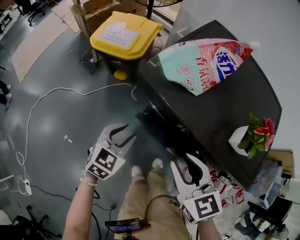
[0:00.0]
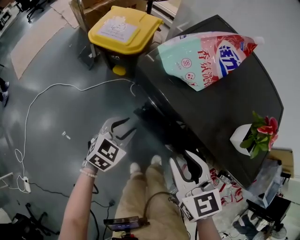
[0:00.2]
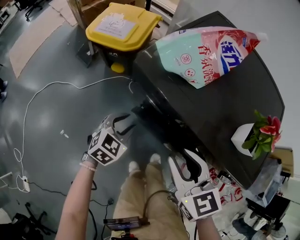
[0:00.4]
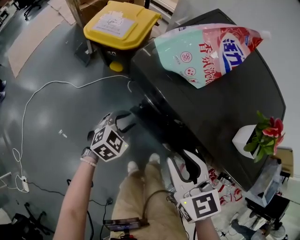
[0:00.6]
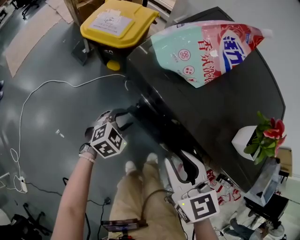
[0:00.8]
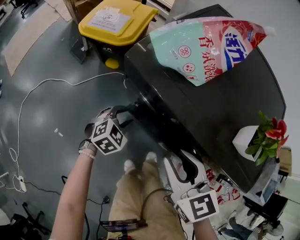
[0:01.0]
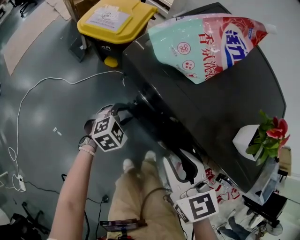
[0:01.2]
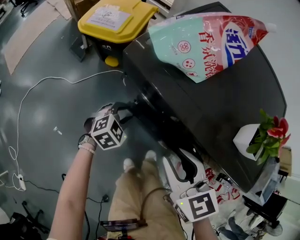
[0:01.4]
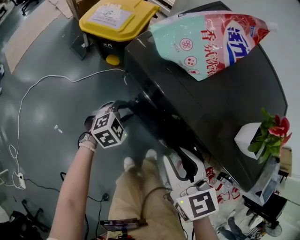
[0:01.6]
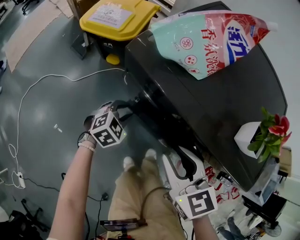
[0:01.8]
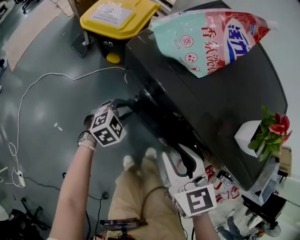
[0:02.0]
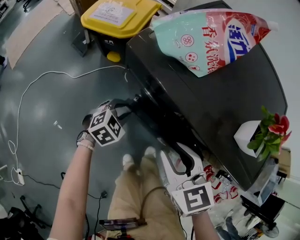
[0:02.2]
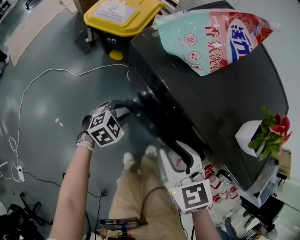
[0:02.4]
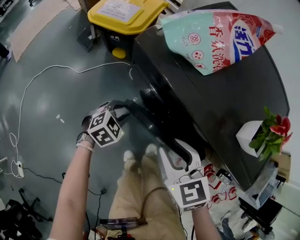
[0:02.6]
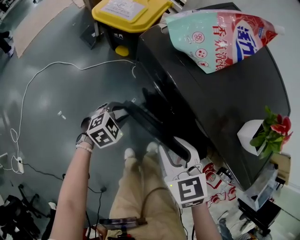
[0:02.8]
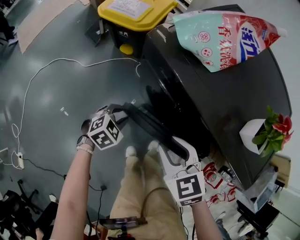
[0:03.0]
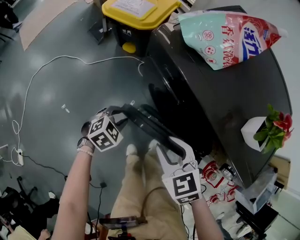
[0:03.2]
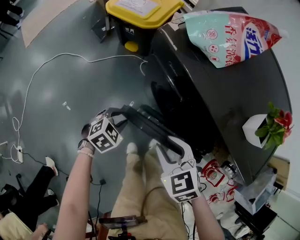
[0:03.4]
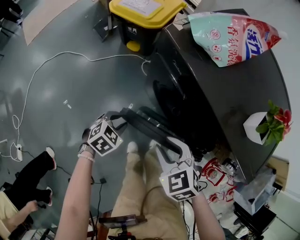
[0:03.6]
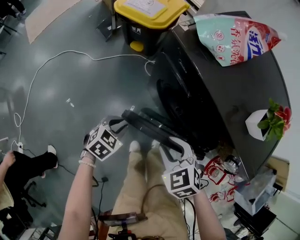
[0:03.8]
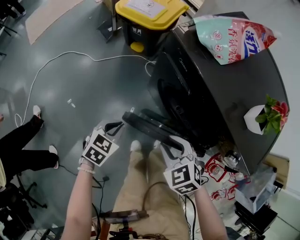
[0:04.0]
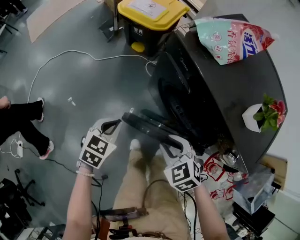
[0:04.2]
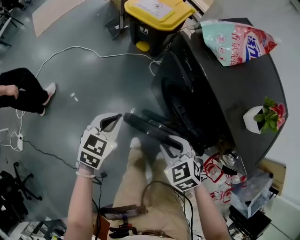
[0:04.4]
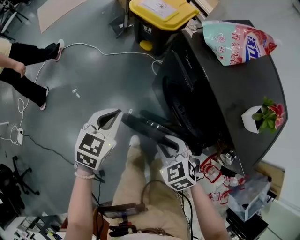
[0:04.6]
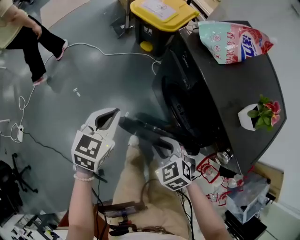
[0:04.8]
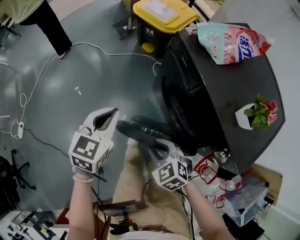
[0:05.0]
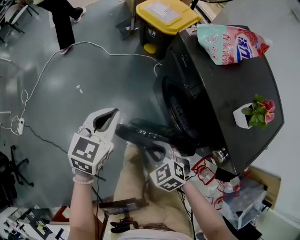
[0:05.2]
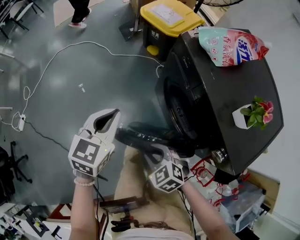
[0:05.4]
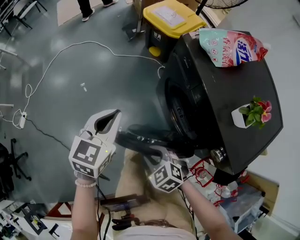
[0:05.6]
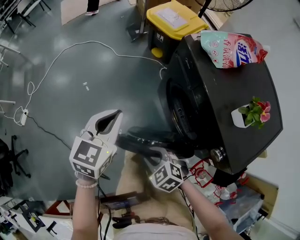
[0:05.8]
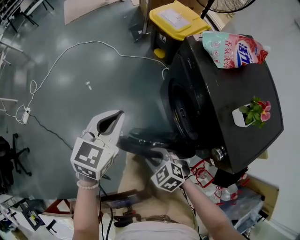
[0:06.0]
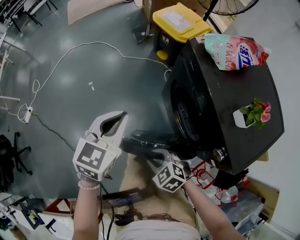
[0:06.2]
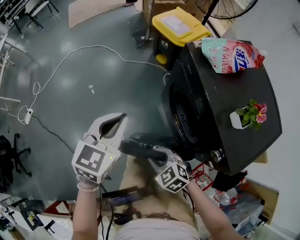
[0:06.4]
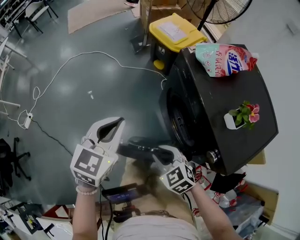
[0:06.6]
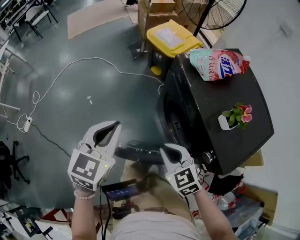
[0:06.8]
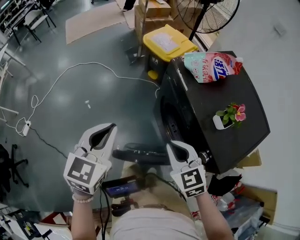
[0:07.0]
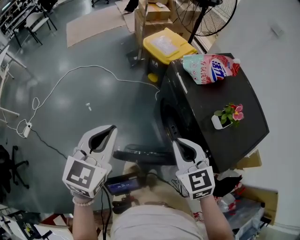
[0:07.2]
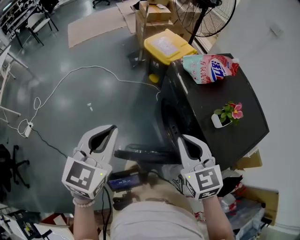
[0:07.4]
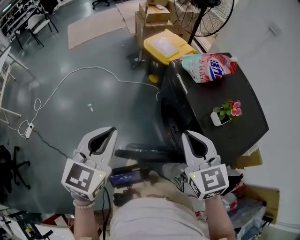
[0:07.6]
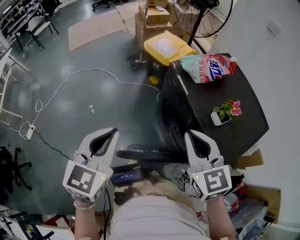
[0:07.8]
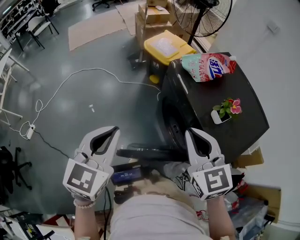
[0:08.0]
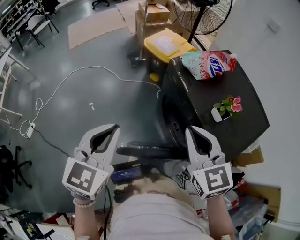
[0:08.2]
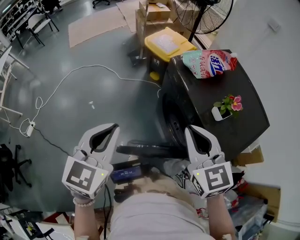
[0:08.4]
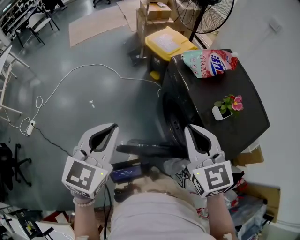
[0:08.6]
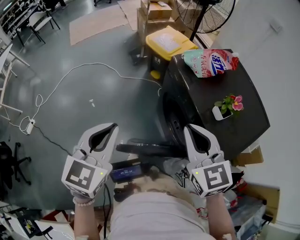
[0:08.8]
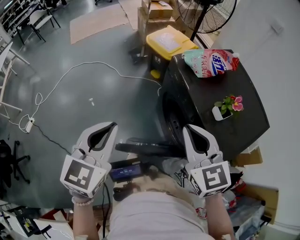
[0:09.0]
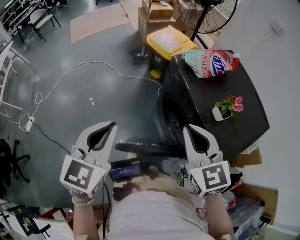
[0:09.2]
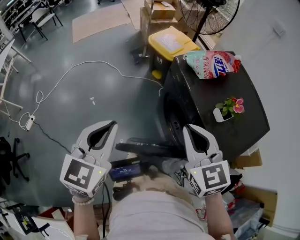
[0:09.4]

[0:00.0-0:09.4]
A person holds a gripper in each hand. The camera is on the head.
0:00.0 to 0:01.6: The right gripper moves downward, some 5 cm. The left gripper is displaced downward by roughly 15 cm, and rotates roughly 30 degrees.
0:01.6 to 0:03.2: The right gripper shifts roughly 5 cm downward, and turns by about 20 degrees. Meanwhile the left gripper is displaced backward by about 10 cm.
0:03.2 to 0:04.8: The left gripper moves upward, approximately 20 cm, changes its angle by approximately 50 degrees, and closes its fingers. Meanwhile the right gripper shifts by some 10 cm, and turns by some 20 degrees.
0:04.8 to 0:06.2: The left gripper goes about 15 cm upward and backward; the right gripper travels backward and to the left by roughly 10 cm, and changes its angle by about 20 degrees.
0:06.2 to 0:07.8: The left gripper is displaced upward and backward by roughly 15 cm. The right gripper travels upward and to the right by some 35 cm, angles its fingers upward, by roughly 30 degrees, and closes its fingers.
0:07.8 to 0:09.4: Both grippers stay put.

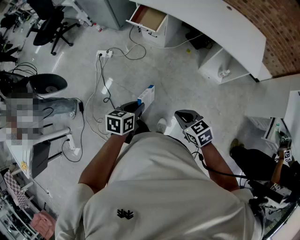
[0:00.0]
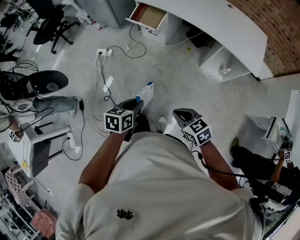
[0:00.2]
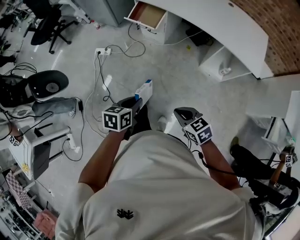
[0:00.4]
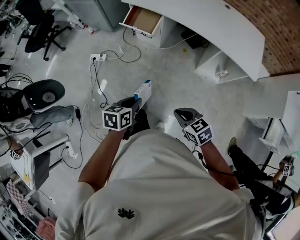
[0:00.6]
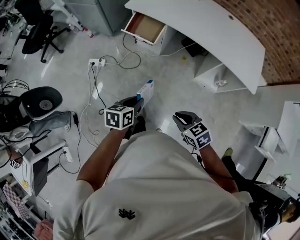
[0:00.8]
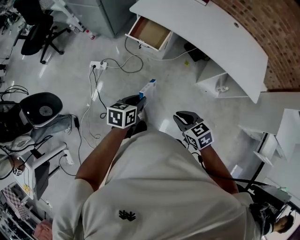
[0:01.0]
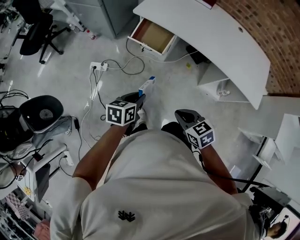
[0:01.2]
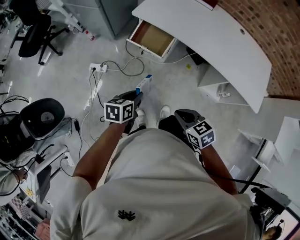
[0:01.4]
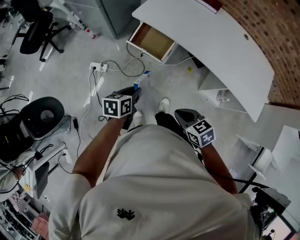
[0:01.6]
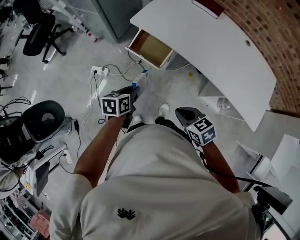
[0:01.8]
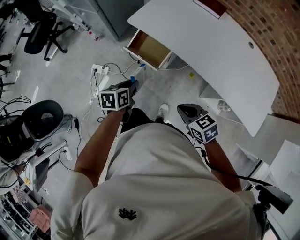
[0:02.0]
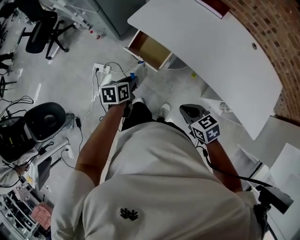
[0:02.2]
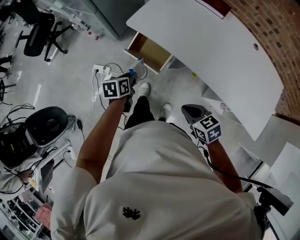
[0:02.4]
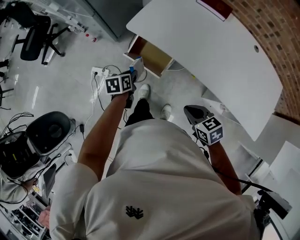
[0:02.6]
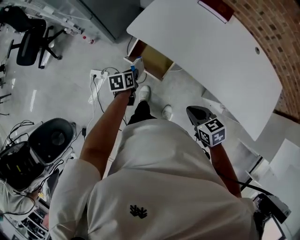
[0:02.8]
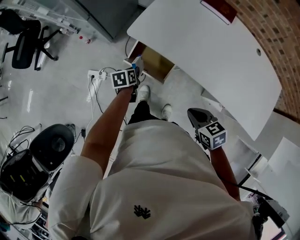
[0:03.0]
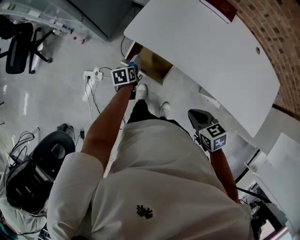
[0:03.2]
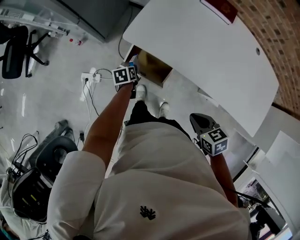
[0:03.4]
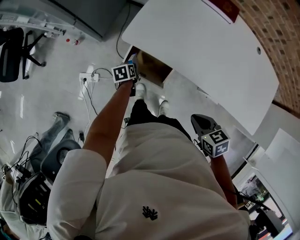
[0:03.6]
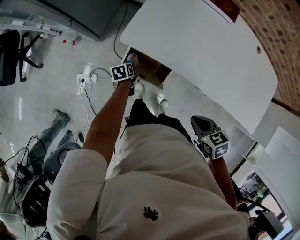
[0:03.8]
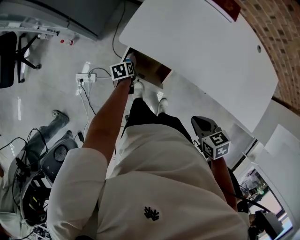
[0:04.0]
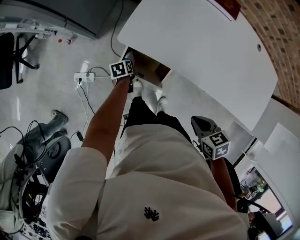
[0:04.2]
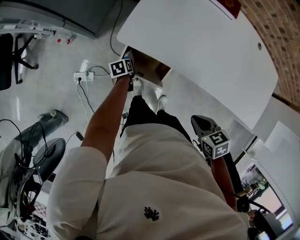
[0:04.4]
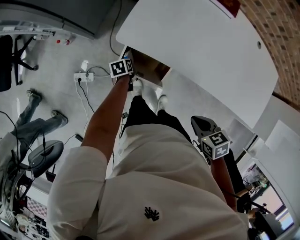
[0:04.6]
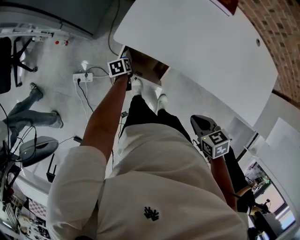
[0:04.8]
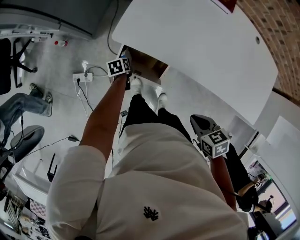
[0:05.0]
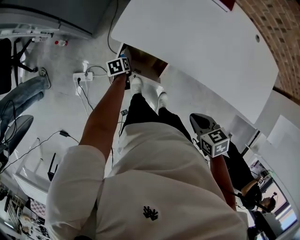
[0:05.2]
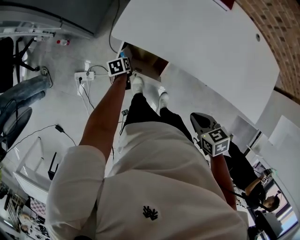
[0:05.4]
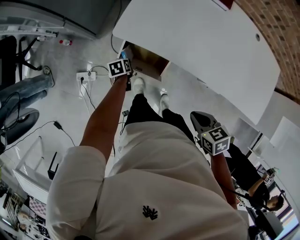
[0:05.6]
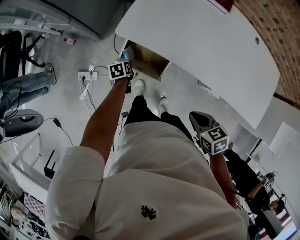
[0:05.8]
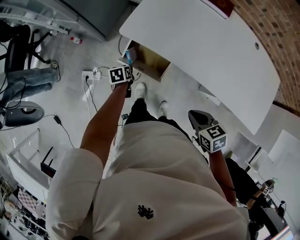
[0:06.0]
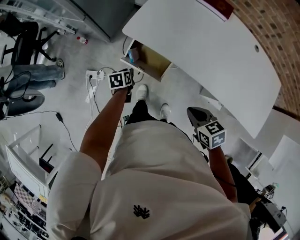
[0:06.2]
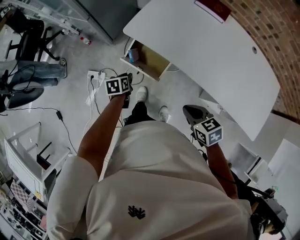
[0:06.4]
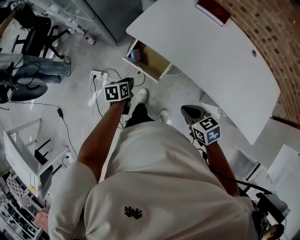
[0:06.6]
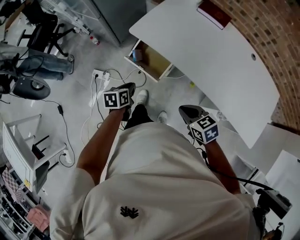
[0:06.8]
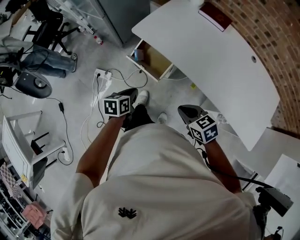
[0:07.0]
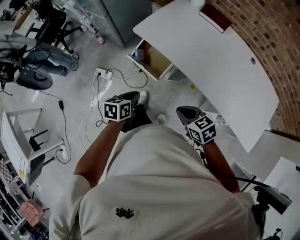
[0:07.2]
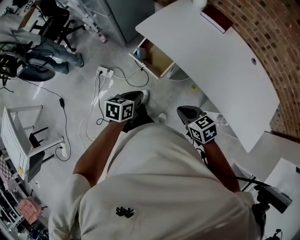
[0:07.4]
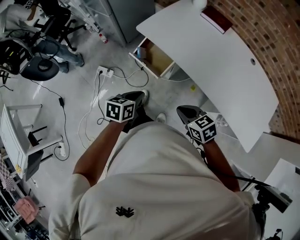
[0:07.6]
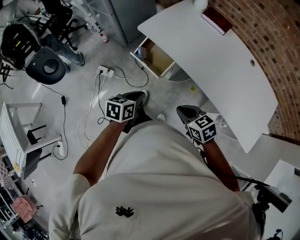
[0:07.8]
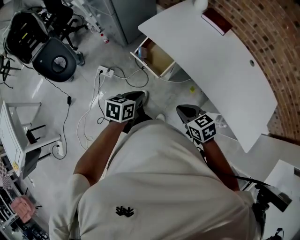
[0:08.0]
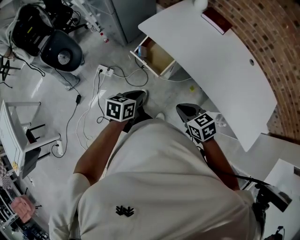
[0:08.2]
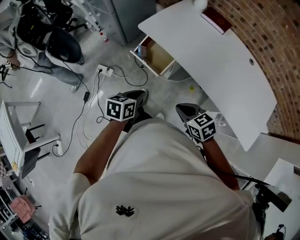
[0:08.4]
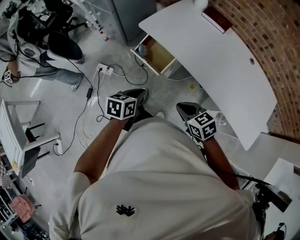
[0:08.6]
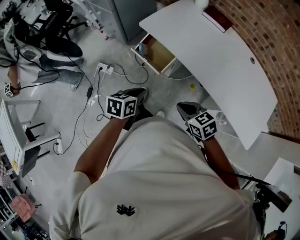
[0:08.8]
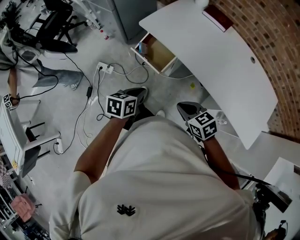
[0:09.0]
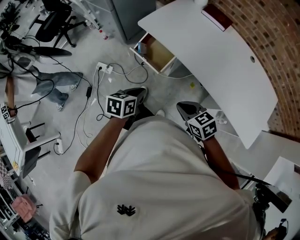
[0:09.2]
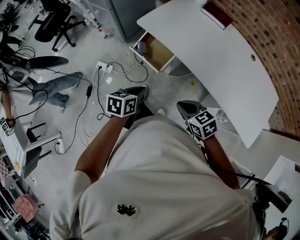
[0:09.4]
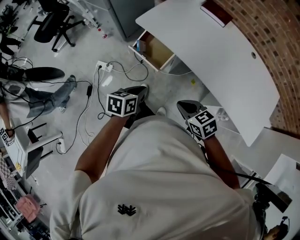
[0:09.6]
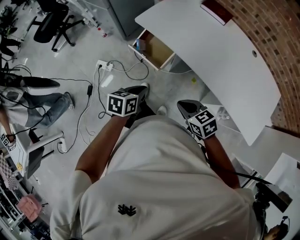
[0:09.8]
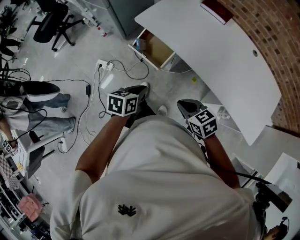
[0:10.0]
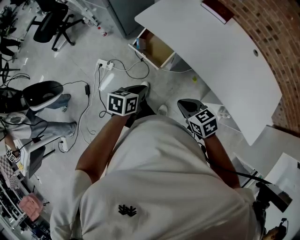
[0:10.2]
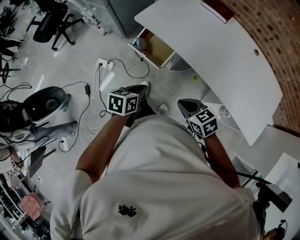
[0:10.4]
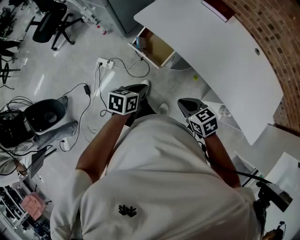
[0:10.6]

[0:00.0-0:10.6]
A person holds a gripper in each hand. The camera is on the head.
0:00.0 to 0:01.6: Both grippers are carried forward, about 50 cm.
0:01.6 to 0:03.0: Both grippers move forward, some 35 cm.
0:03.0 to 0:04.6: The left gripper goes about 20 cm downward and forward. The right gripper heads forward, covering about 10 cm.
0:04.6 to 0:06.0: The right gripper is displaced backward by roughly 5 cm. The left gripper shifts some 15 cm backward and upward.
0:06.0 to 0:07.6: The left gripper heads backward and upward, covering roughly 40 cm, and closes up. Meanwhile the right gripper goes some 15 cm backward, and turns by roughly 30 degrees.
0:07.6 to 0:10.6: There are only small adjustments of the grippers.

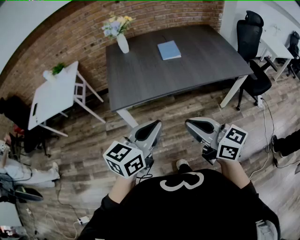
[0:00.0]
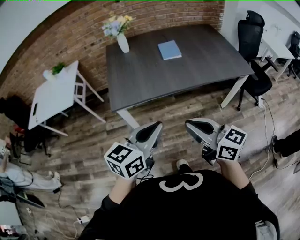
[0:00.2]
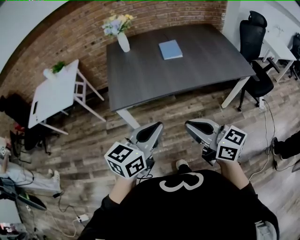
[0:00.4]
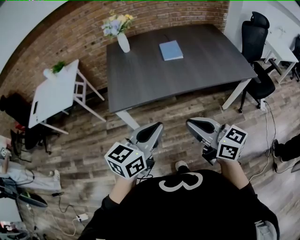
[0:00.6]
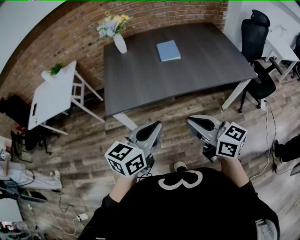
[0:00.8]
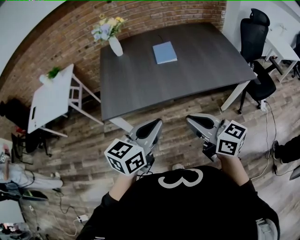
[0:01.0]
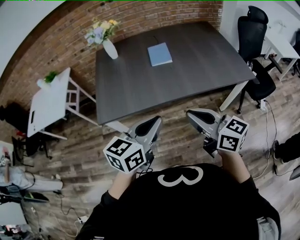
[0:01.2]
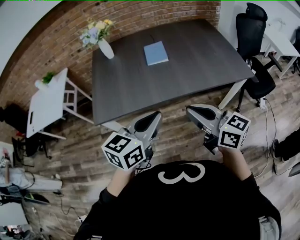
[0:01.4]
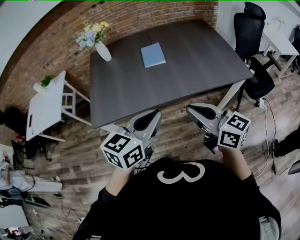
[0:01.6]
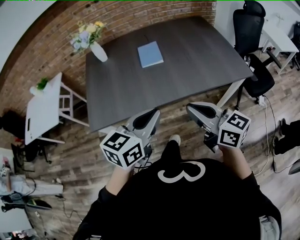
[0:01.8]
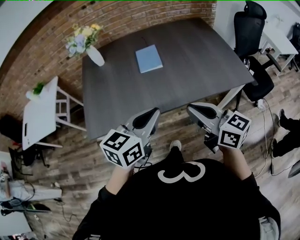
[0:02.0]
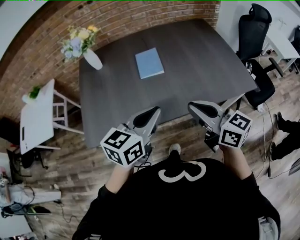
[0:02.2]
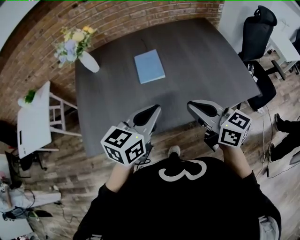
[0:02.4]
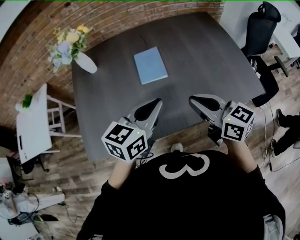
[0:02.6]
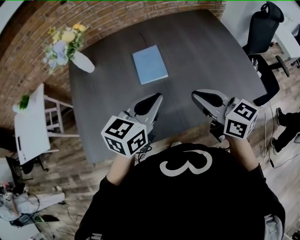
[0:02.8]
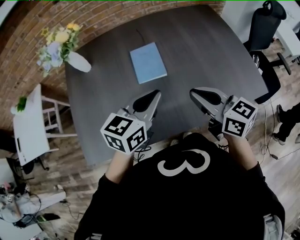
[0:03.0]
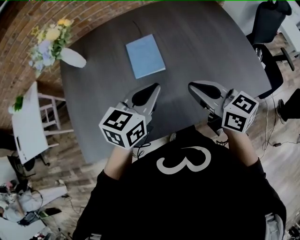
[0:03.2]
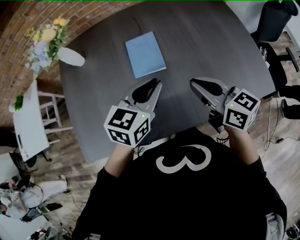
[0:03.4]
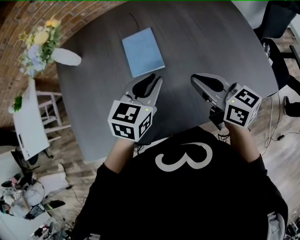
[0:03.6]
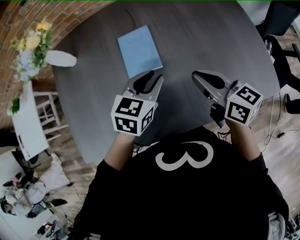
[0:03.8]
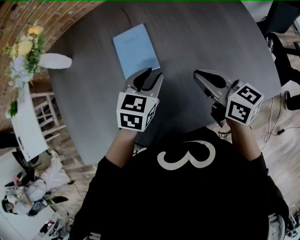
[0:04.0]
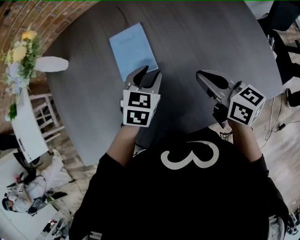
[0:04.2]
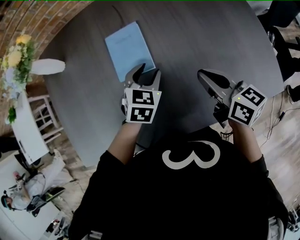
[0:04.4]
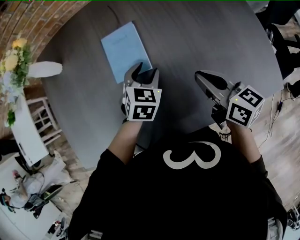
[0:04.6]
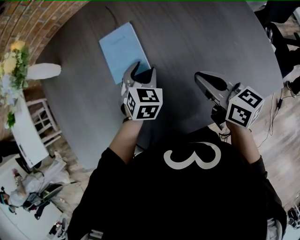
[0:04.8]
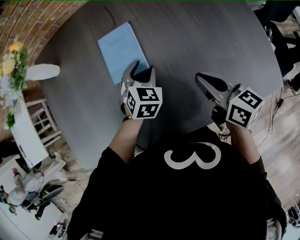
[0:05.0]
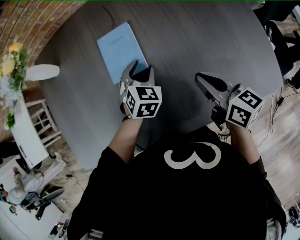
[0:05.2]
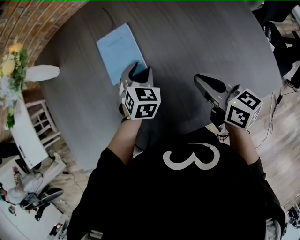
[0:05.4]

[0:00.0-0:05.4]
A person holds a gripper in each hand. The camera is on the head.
0:00.0 to 0:01.4: The grippers both shift to the right and forward by some 20 cm.
0:01.4 to 0:02.8: Both grippers move forward, approximately 30 cm.
0:02.8 to 0:04.0: The left gripper travels downward and forward by about 20 cm, changes its angle by roughly 20 degrees, and opens its fingers. The right gripper travels forward, downward and to the right by approximately 15 cm.
0:04.0 to 0:05.4: The right gripper changes place by some 5 cm. Meanwhile the left gripper heads downward, covering about 10 cm, and rotates some 20 degrees.
